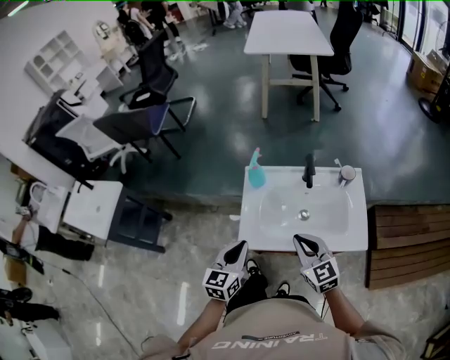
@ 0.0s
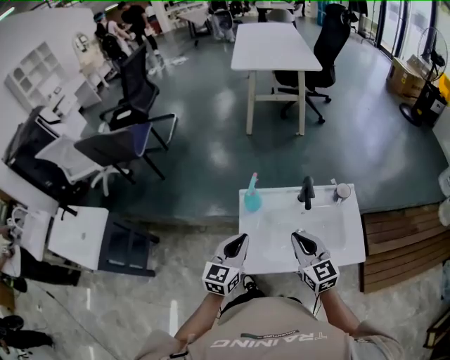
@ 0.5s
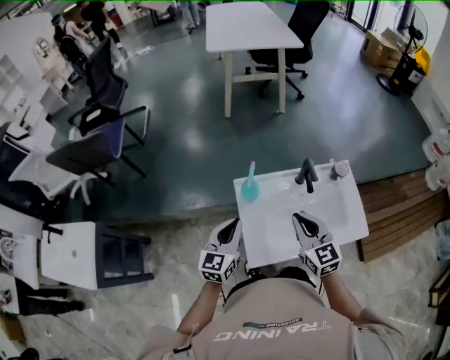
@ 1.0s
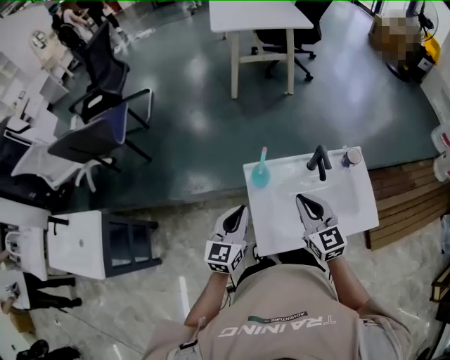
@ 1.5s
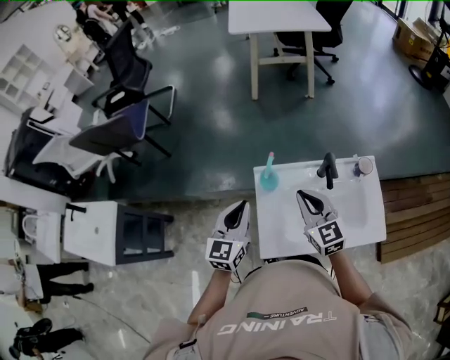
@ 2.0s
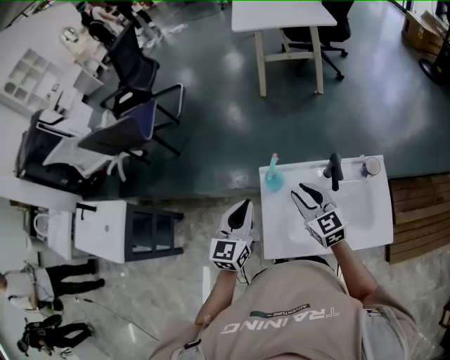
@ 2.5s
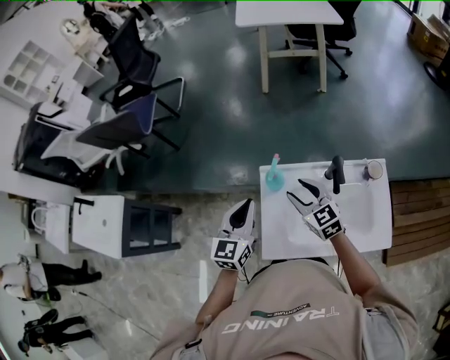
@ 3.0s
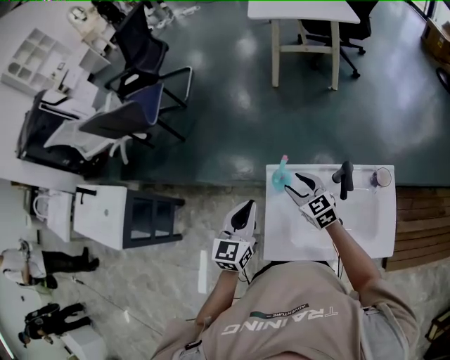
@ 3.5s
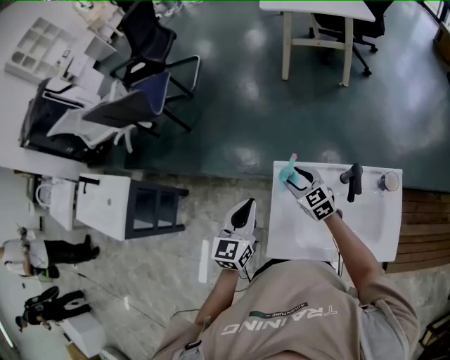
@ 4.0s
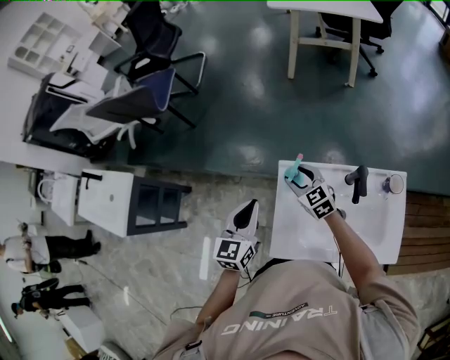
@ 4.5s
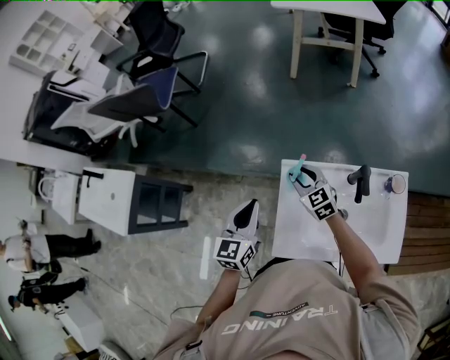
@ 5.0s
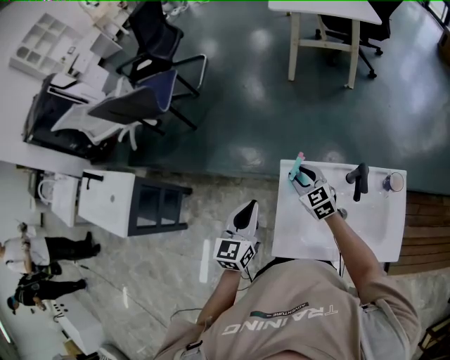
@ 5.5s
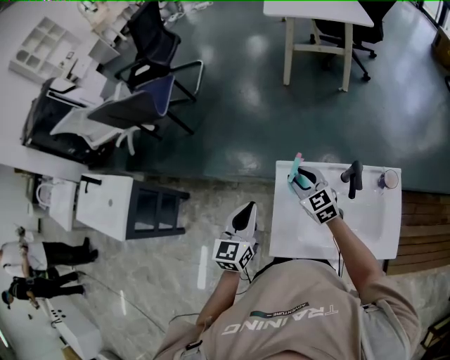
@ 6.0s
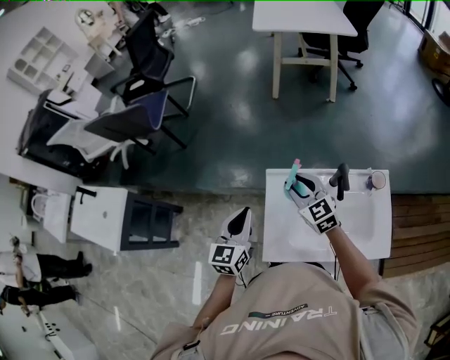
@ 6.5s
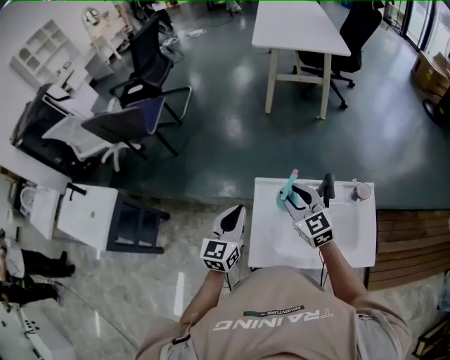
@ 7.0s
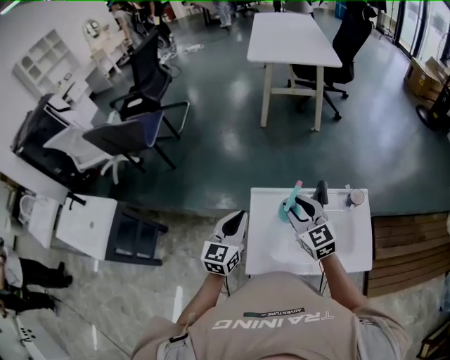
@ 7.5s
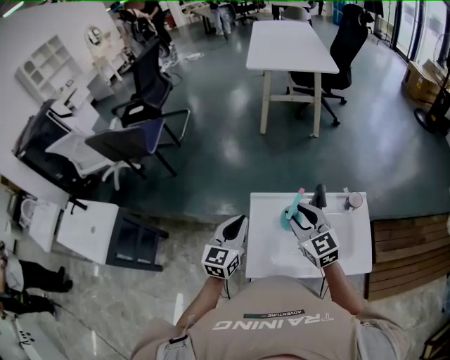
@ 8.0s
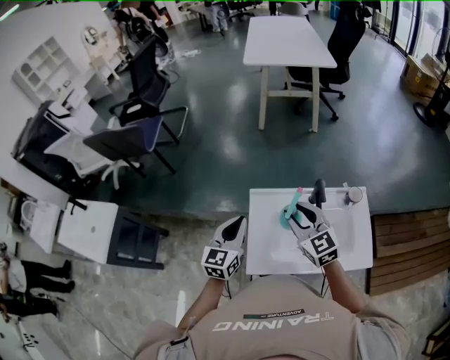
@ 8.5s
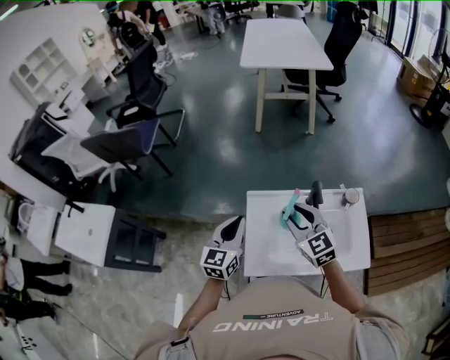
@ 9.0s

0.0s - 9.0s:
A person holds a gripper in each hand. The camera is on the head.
0.0s - 2.0s: The left gripper is displaced forward by roughly 20 cm, while the right gripper shifts approximately 20 cm forward and to the left.
2.0s - 4.5s: The right gripper travels downward, forward and to the left by roughly 20 cm, rotates roughly 20 degrees, and opens up.
4.5s - 7.0s: The right gripper travels upward and backward by about 15 cm.
7.0s - 9.0s: The right gripper travels backward by some 5 cm.

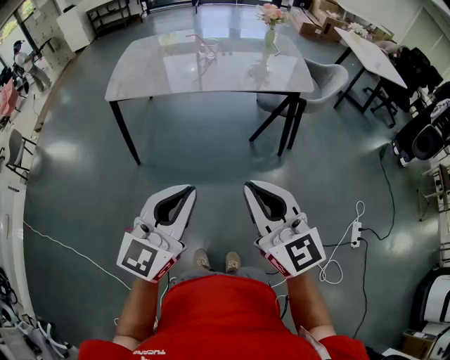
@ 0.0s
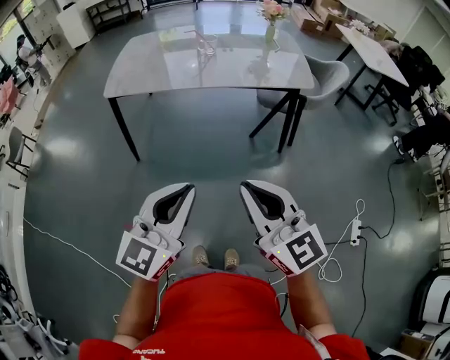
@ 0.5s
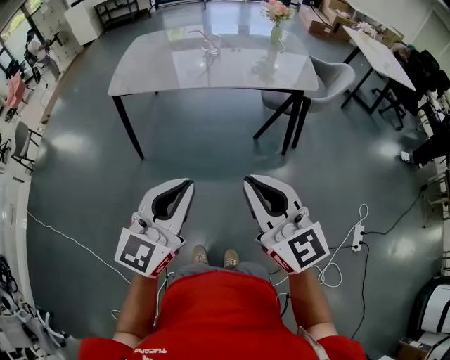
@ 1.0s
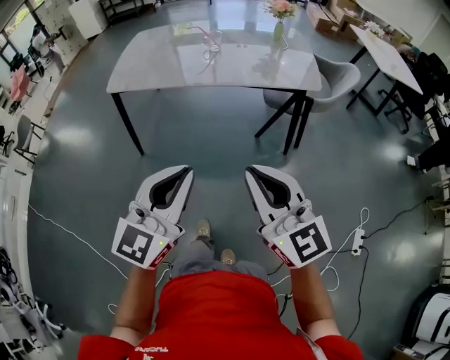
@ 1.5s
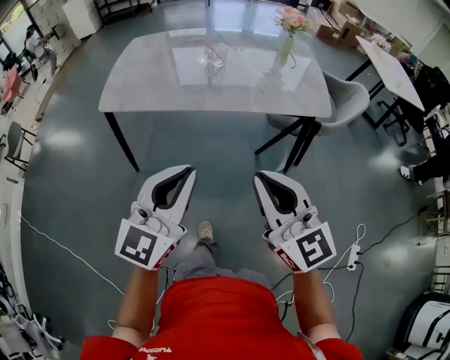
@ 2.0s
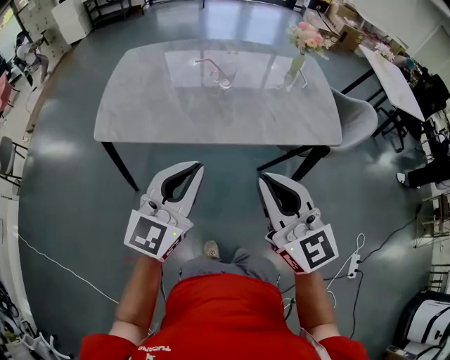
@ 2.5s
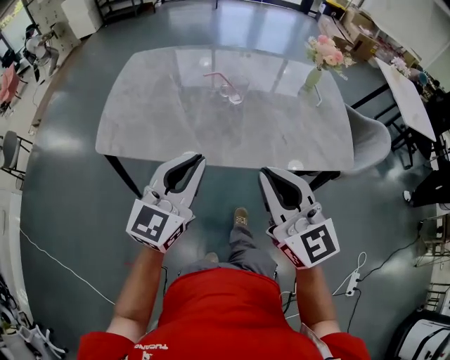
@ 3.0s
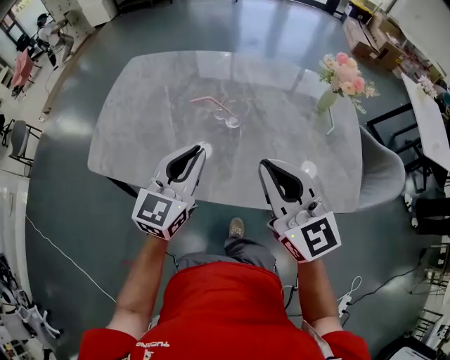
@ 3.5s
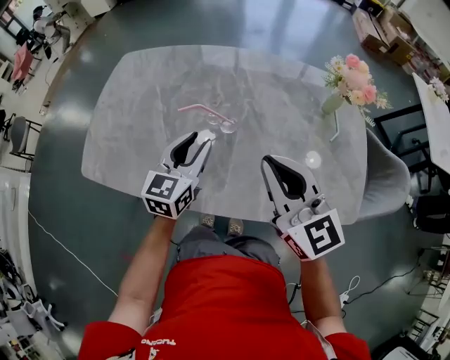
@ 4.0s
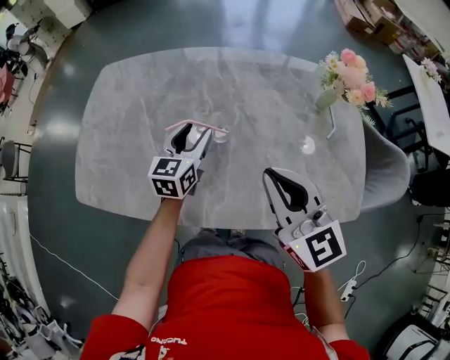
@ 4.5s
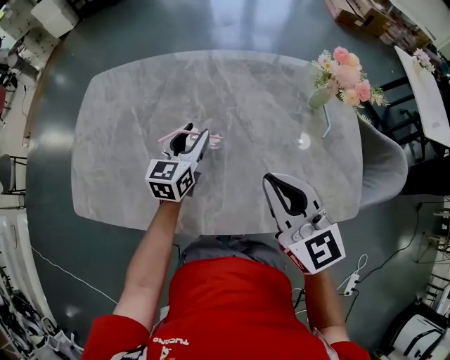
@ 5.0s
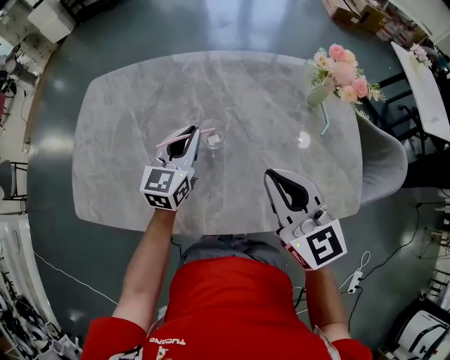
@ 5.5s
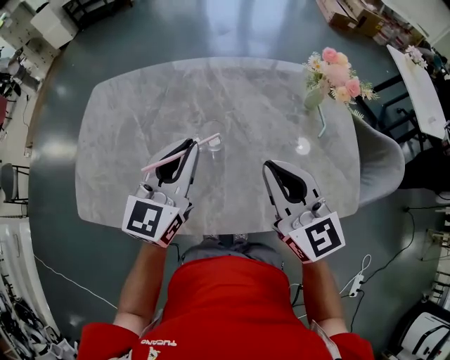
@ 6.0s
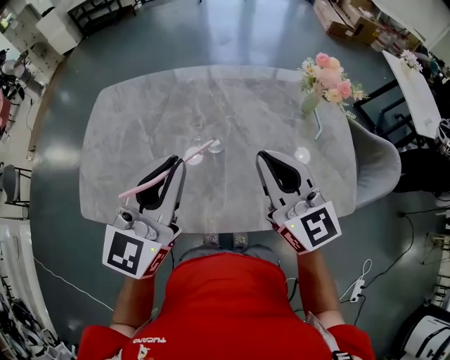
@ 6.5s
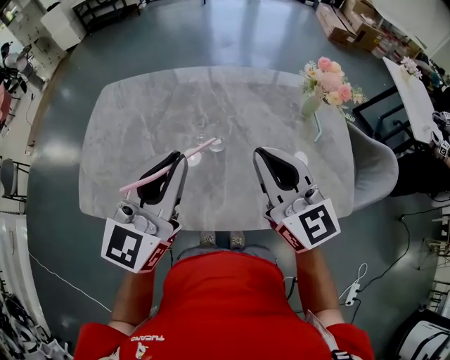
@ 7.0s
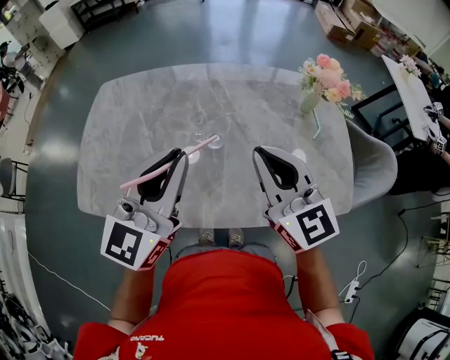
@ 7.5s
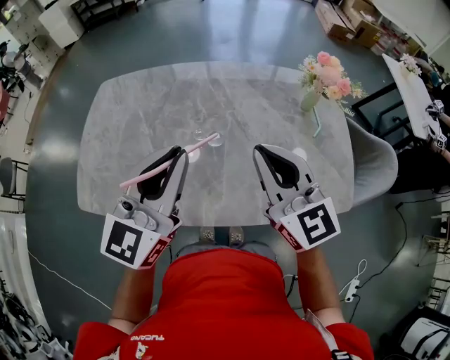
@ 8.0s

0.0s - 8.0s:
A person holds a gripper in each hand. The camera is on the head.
0.0s - 2.0s: Both grippers travel together forward, some 20 cm.
2.0s - 4.0s: The two grippers travel together, forward, about 50 cm. The left gripper rotates approximately 30 degrees, and opens up.
4.0s - 6.0s: The left gripper is displaced upward by about 10 cm, and closes up.
6.0s - 8.0s: The left gripper heads upward and backward, covering some 10 cm, while the right gripper shifts by some 5 cm.

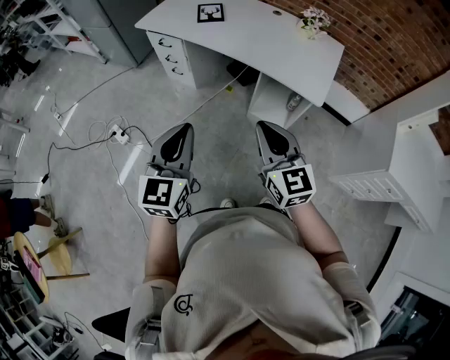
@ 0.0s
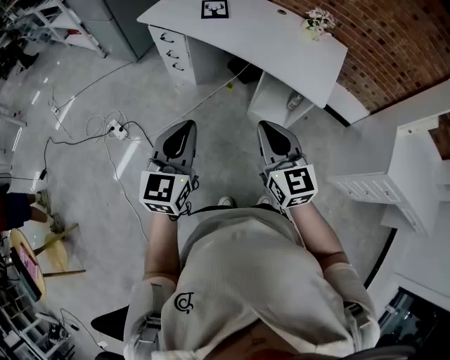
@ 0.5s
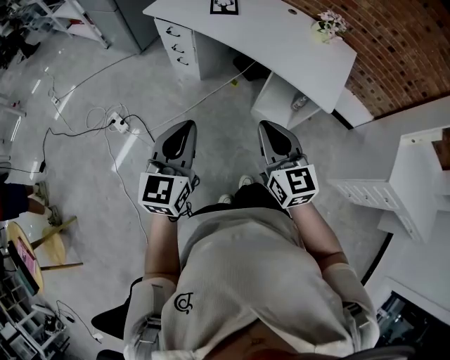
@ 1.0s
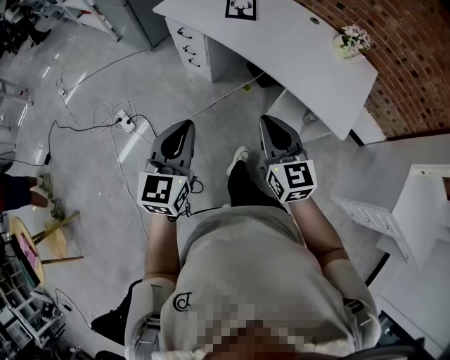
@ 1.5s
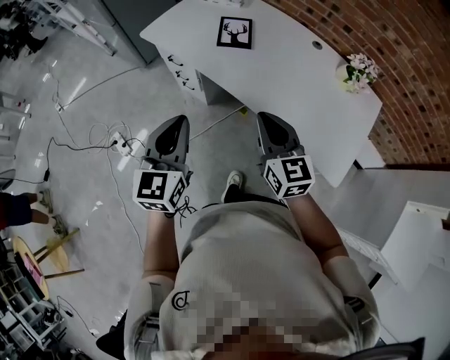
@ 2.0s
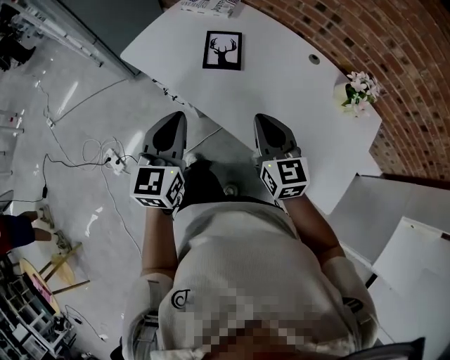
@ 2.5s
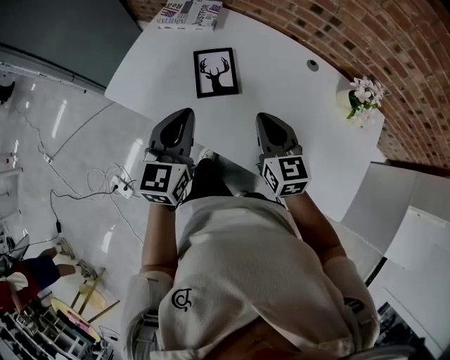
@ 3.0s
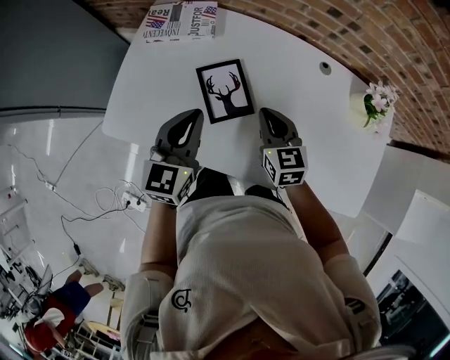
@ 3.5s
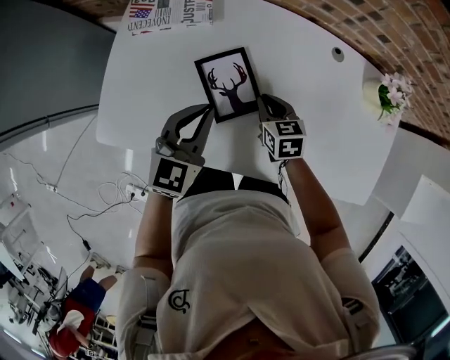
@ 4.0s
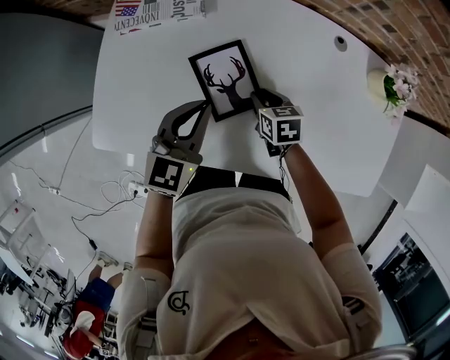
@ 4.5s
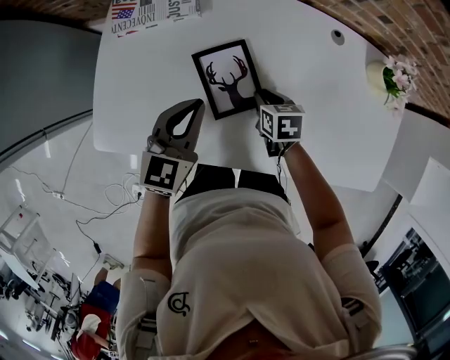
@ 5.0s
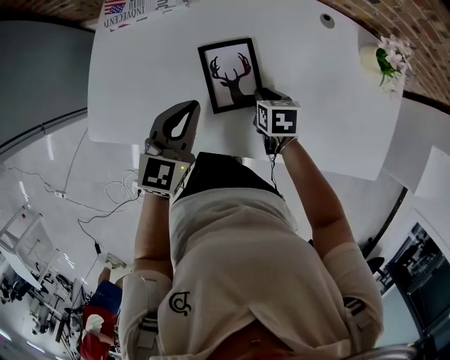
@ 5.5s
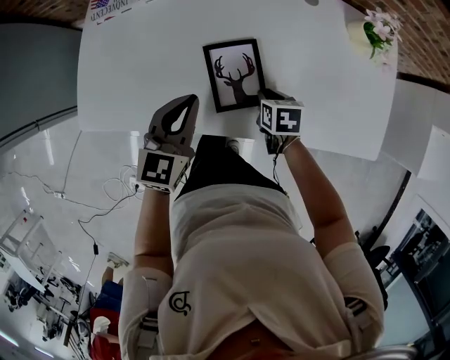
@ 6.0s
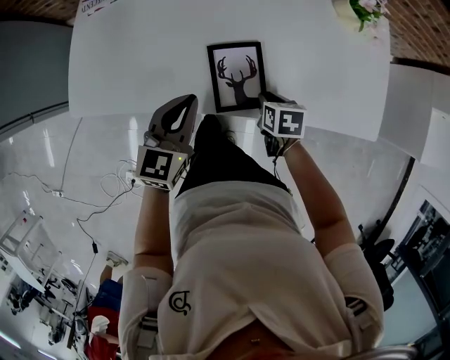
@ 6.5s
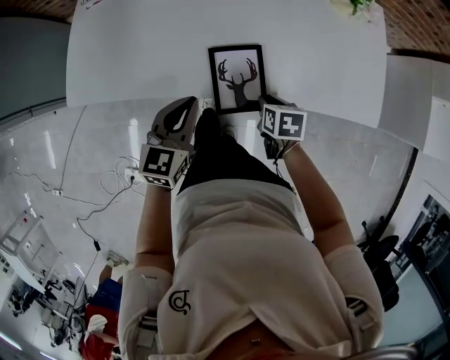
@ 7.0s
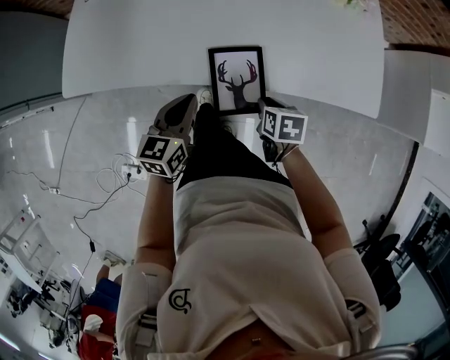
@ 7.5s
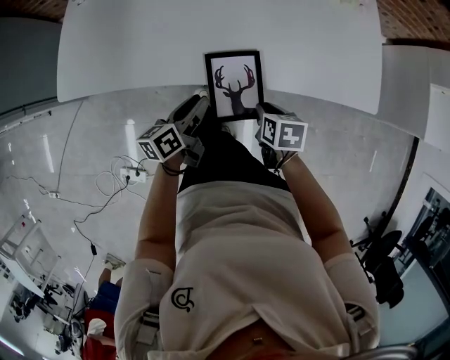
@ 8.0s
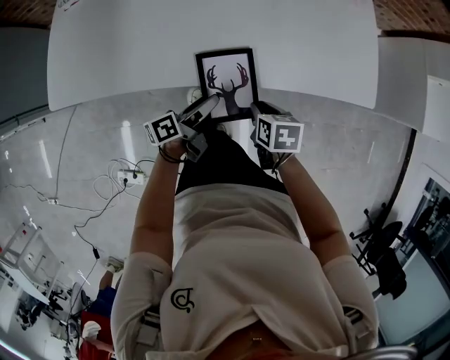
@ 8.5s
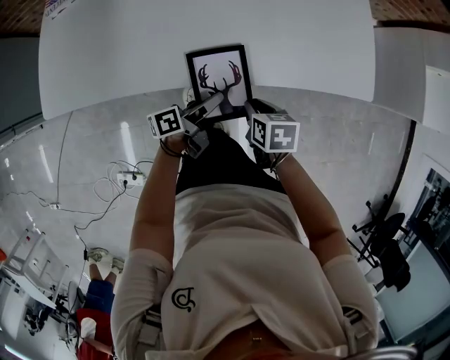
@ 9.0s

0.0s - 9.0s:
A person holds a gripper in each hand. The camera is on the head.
0.0s - 2.0s: The two grippers go approximately 35 cm forward.
2.0s - 4.5s: The pair of grippers is taken roughly 50 cm. The right gripper tilts its fingers approximately 50 degrees downward, and opens, while the left gripper swivels some 40 degrees.
4.5s - 7.0s: The grippers both shift backward and to the right by roughly 25 cm. The right gripper swivels approximately 20 degrees.
7.0s - 9.0s: The left gripper shifts approximately 20 cm to the right and downward, rolls counterclockwise, seen from behind, by approximately 70 degrees, and opens up, while the right gripper is displaced backward by roughly 5 cm.

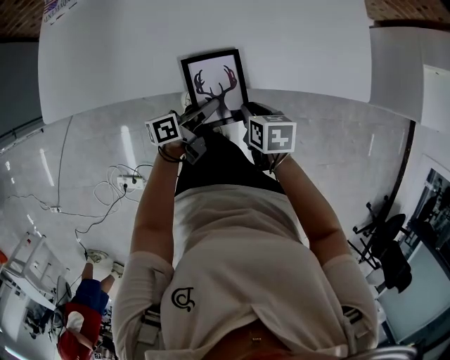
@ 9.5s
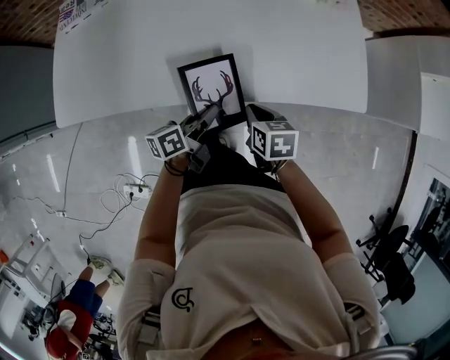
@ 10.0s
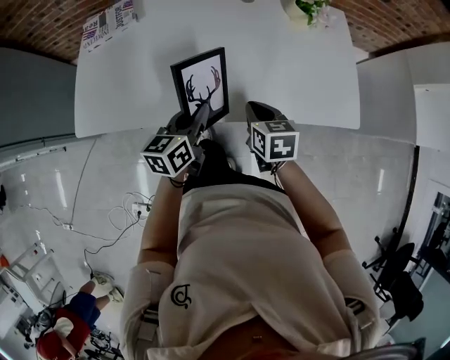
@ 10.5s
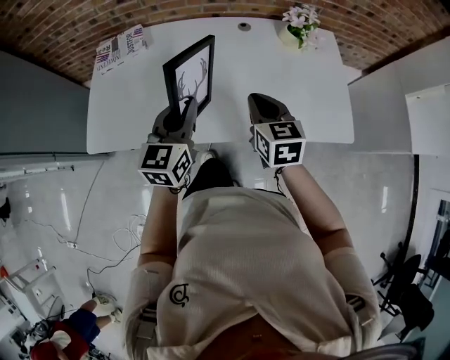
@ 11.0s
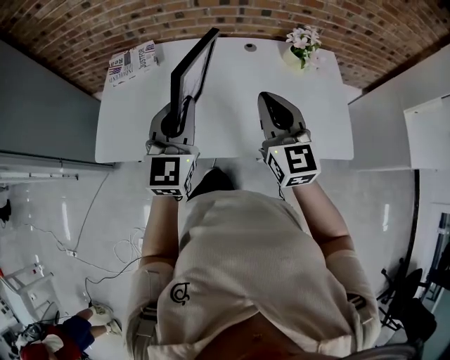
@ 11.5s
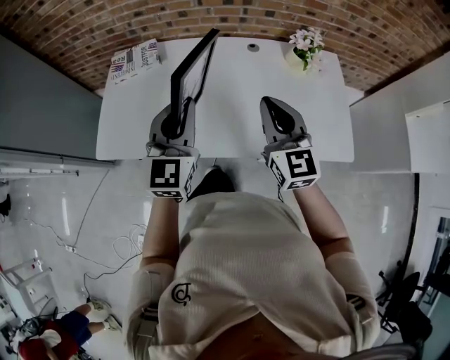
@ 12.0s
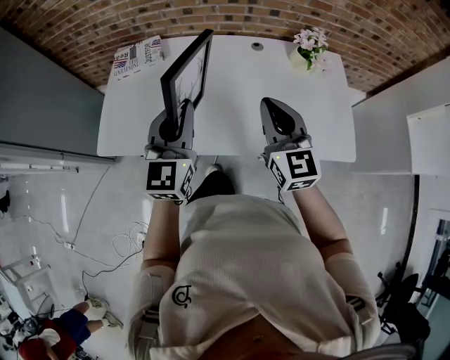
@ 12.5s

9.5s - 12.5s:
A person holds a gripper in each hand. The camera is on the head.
9.5s - 11.0s: The left gripper shifts approximately 30 cm upward, and rolls clockwise, seen from behind, by about 70 degrees; the right gripper moves upward and forward, approximately 30 cm, and points its fingers some 40 degrees further upward.
11.0s - 12.5s: Both grippers travel together upward, approximately 10 cm. The right gripper rotates approximately 30 degrees.
